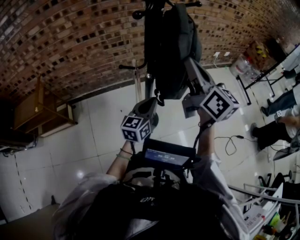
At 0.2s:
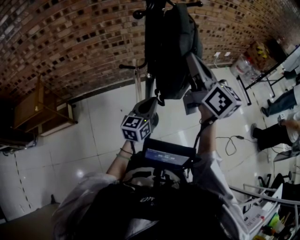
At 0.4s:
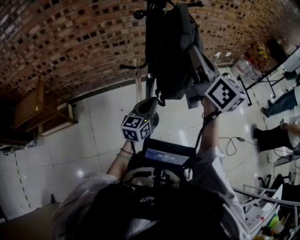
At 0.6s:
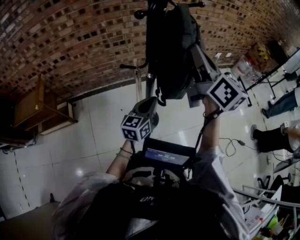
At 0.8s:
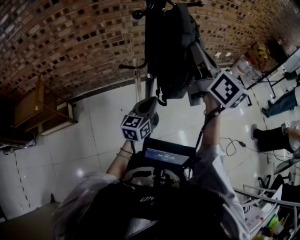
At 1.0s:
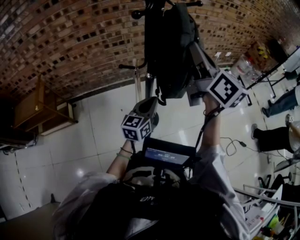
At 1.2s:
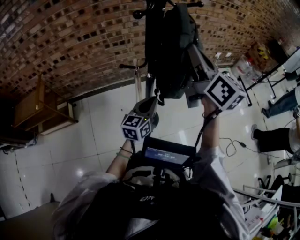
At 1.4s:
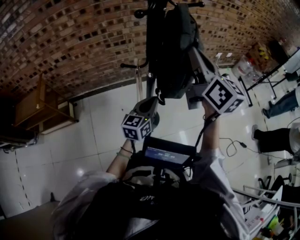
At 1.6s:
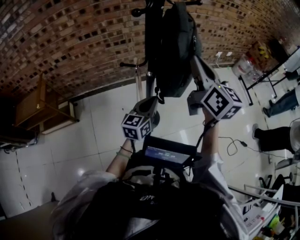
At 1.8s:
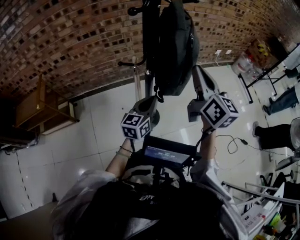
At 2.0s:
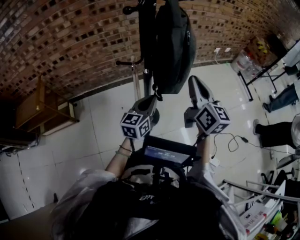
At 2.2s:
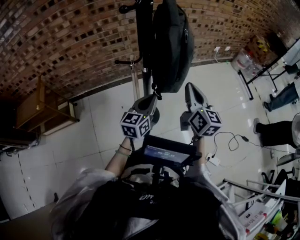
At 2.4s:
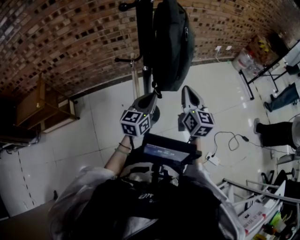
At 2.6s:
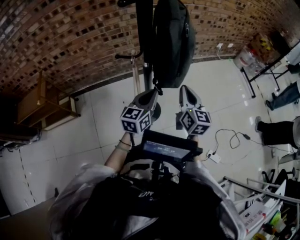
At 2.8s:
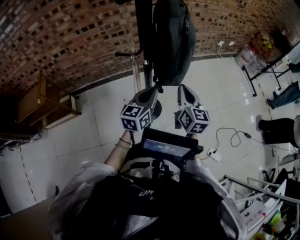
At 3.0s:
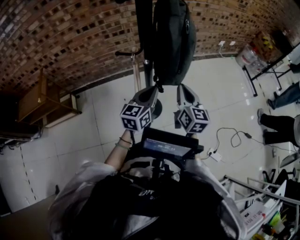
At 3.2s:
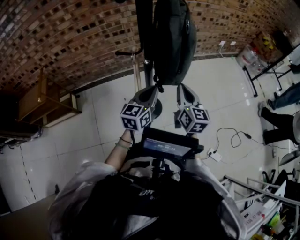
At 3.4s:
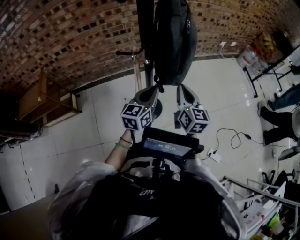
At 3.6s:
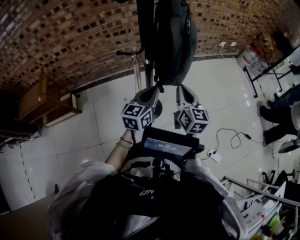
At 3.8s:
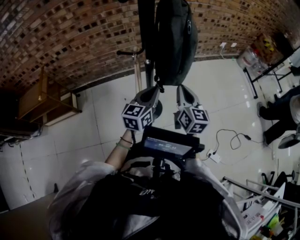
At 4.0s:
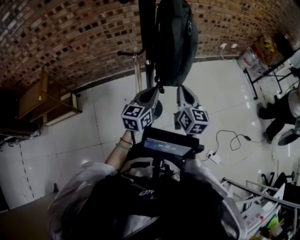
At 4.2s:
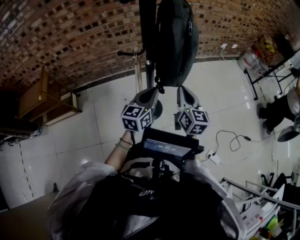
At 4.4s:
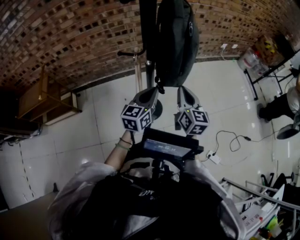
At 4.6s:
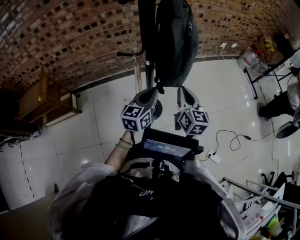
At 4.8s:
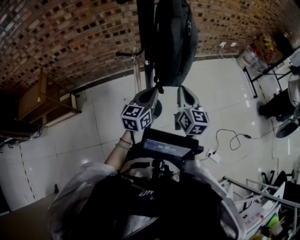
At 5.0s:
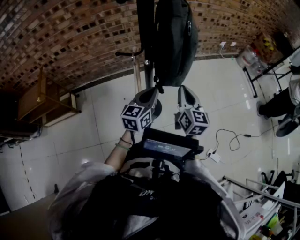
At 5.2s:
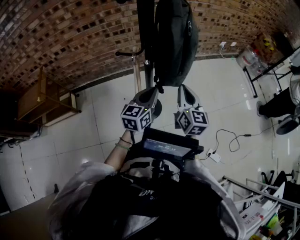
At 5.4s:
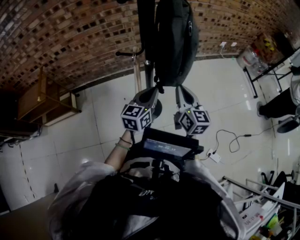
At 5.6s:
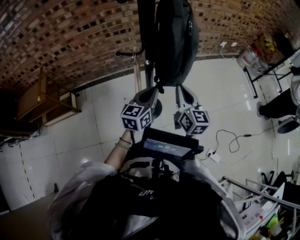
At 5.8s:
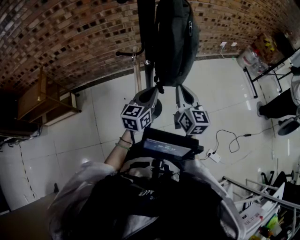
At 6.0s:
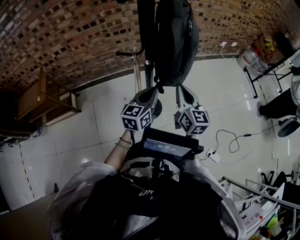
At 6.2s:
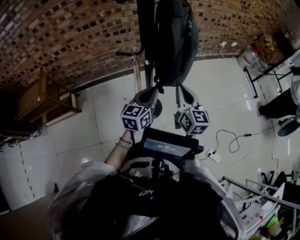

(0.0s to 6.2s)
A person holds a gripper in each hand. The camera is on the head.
0.0s - 1.6s: There are only small adjustments of the grippers.
1.6s - 3.2s: The right gripper goes some 20 cm downward.
3.2s - 4.6s: Neither gripper changes place.
4.6s - 6.2s: There are only small adjustments of the grippers.

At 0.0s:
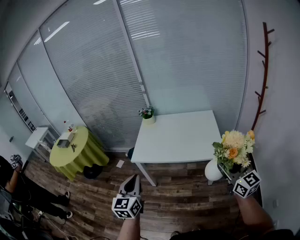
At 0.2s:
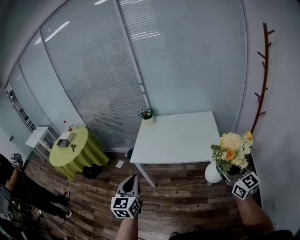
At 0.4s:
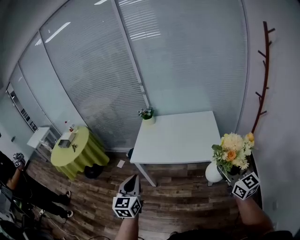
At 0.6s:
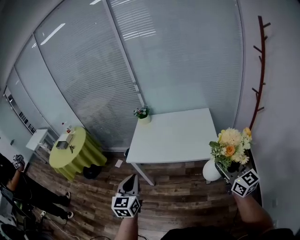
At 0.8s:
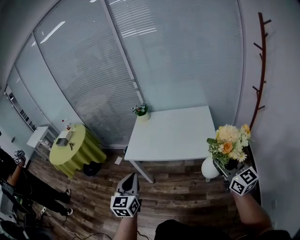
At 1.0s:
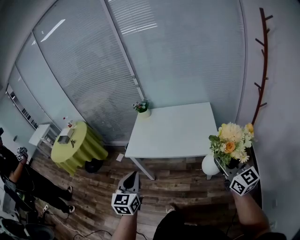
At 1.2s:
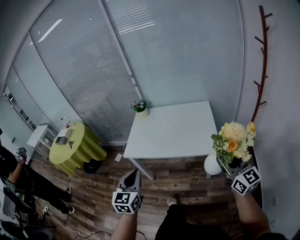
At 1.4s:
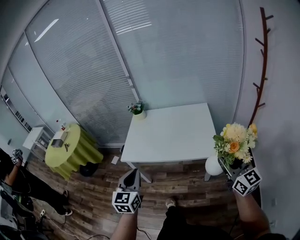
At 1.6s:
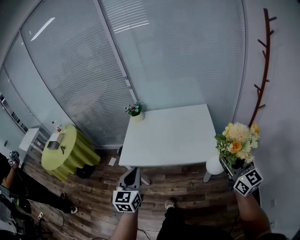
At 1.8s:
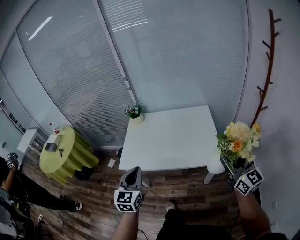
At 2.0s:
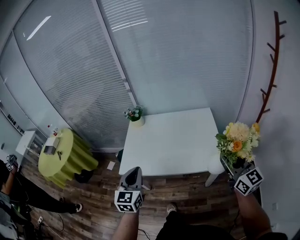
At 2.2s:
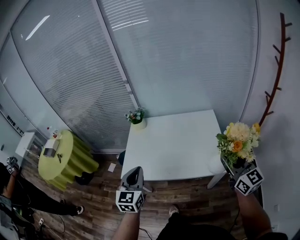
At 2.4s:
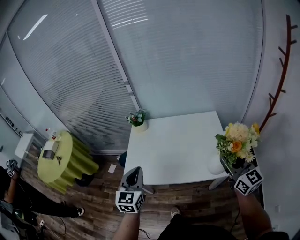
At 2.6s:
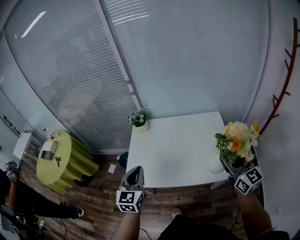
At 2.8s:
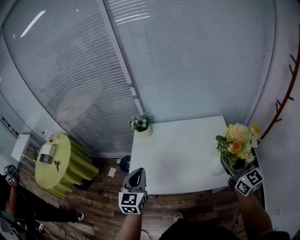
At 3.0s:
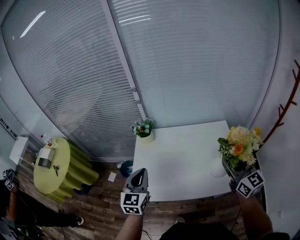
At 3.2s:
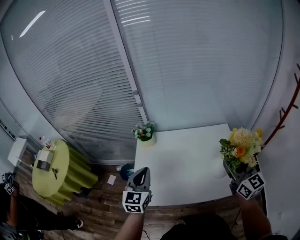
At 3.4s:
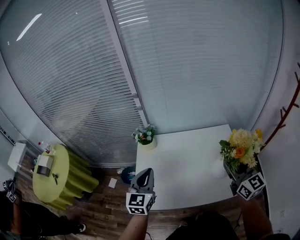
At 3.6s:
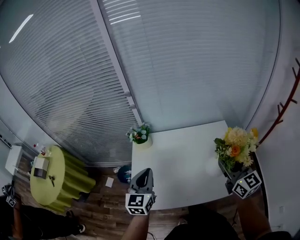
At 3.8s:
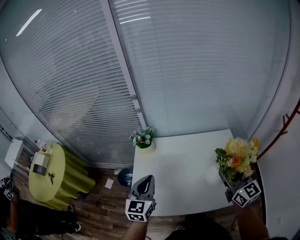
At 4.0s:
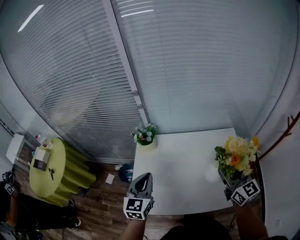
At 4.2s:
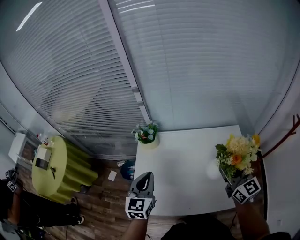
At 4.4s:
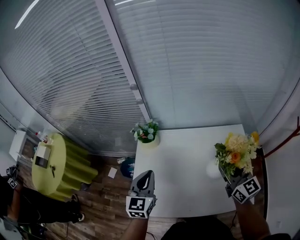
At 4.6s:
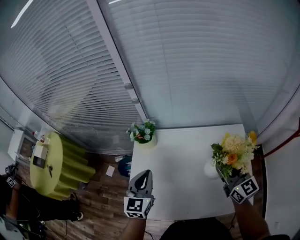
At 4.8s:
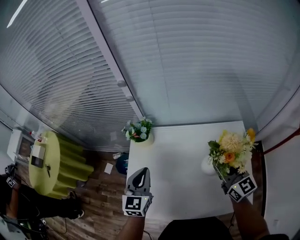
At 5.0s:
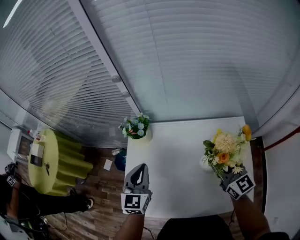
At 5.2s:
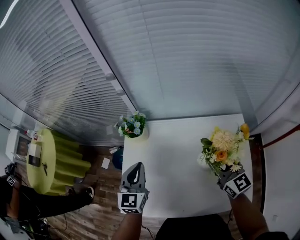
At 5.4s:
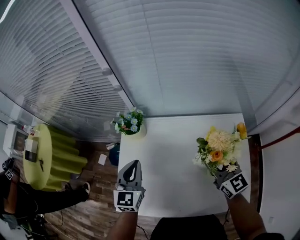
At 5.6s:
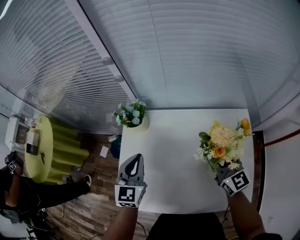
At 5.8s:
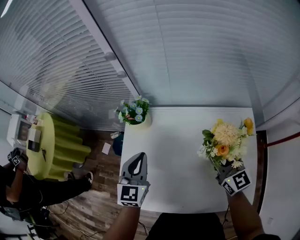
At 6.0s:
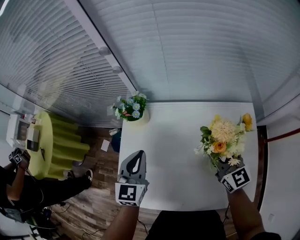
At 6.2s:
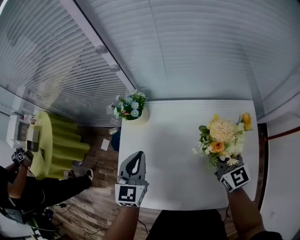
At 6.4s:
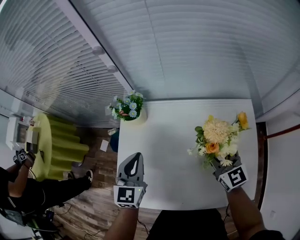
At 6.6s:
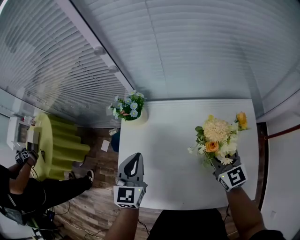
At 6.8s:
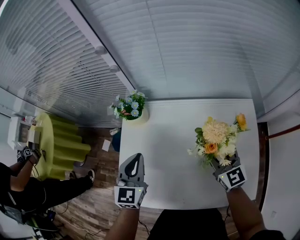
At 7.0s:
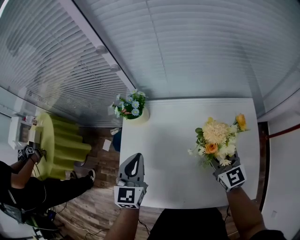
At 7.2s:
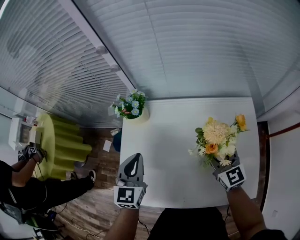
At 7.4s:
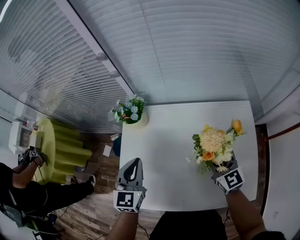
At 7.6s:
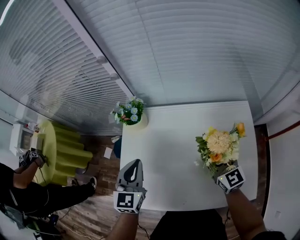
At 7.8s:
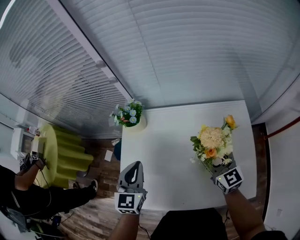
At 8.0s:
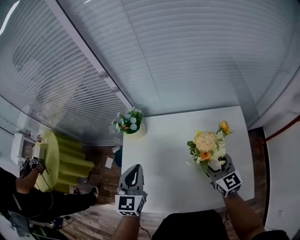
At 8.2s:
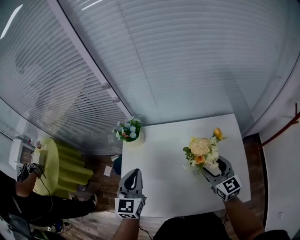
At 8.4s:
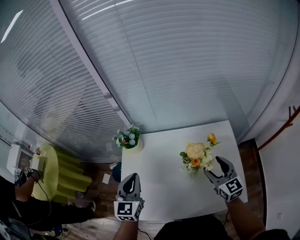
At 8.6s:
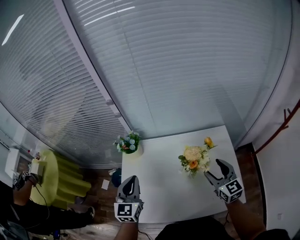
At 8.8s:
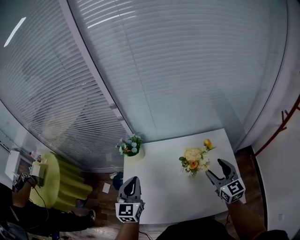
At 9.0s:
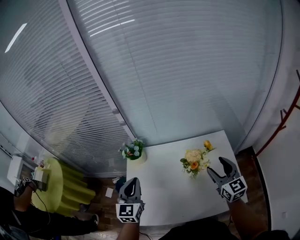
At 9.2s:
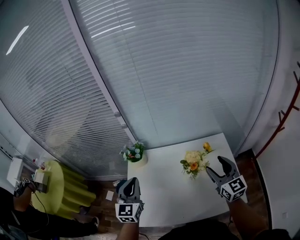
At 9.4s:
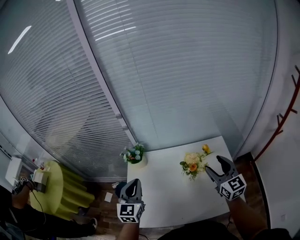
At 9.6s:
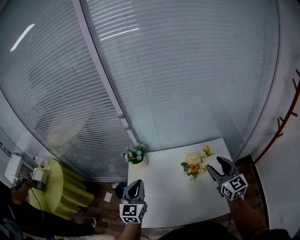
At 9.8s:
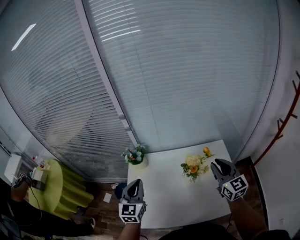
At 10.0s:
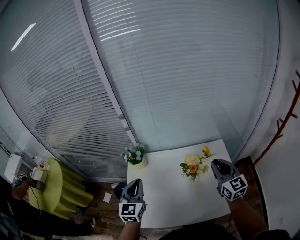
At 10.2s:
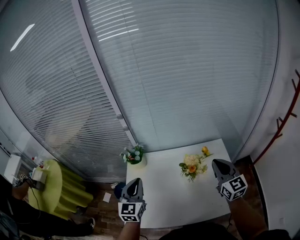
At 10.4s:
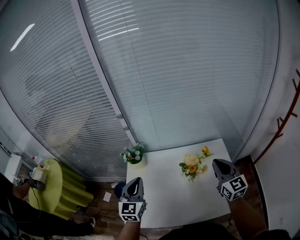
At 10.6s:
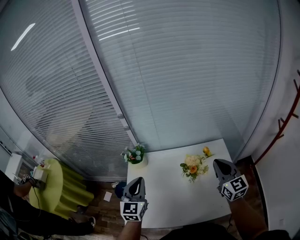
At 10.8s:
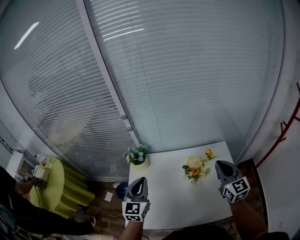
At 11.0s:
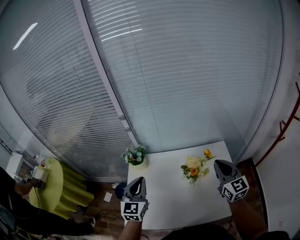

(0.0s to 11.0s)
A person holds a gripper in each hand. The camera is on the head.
0.0s - 1.6s: The left gripper goes about 15 cm forward and to the right. Meanwhile the right gripper goes roughly 10 cm to the right and forward.
1.6s - 3.2s: The left gripper is displaced forward by some 30 cm. The right gripper shifts approximately 30 cm forward and to the left.
3.2s - 4.8s: Both grippers move forward and downward, roughly 15 cm.
4.8s - 6.2s: The right gripper travels downward by approximately 10 cm.
6.2s - 7.8s: There are only small adjustments of the grippers.
7.8s - 9.4s: The right gripper is displaced upward by some 15 cm, while the left gripper goes roughly 10 cm upward.
9.4s - 11.0s: The right gripper closes its fingers.

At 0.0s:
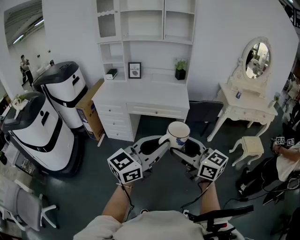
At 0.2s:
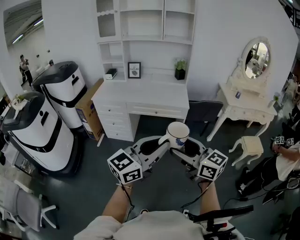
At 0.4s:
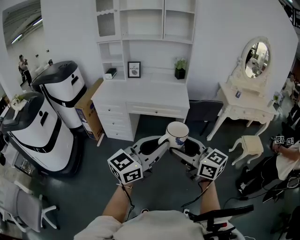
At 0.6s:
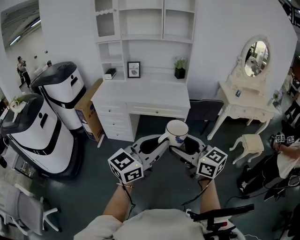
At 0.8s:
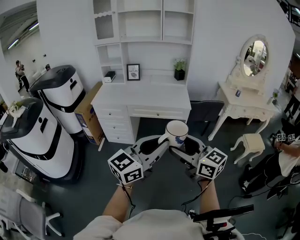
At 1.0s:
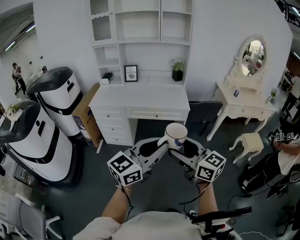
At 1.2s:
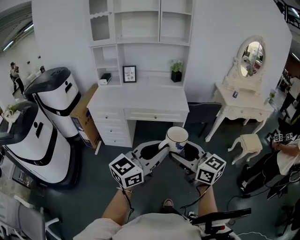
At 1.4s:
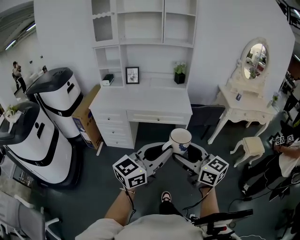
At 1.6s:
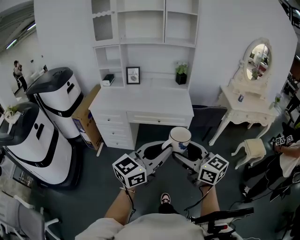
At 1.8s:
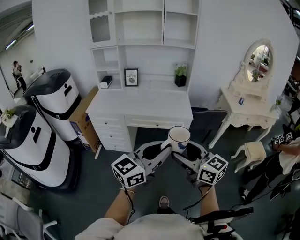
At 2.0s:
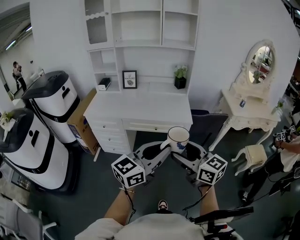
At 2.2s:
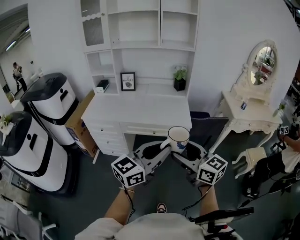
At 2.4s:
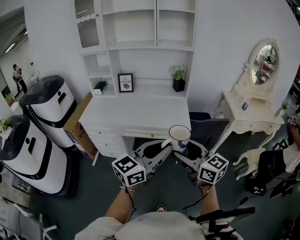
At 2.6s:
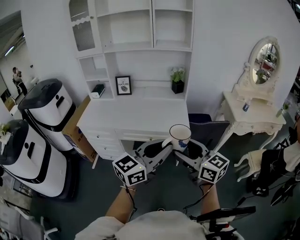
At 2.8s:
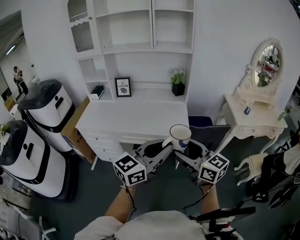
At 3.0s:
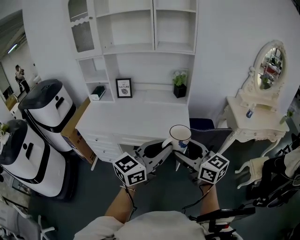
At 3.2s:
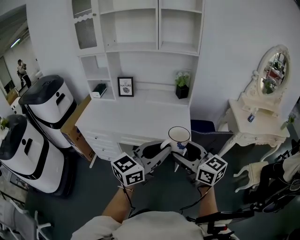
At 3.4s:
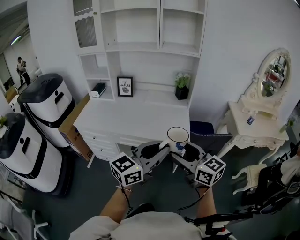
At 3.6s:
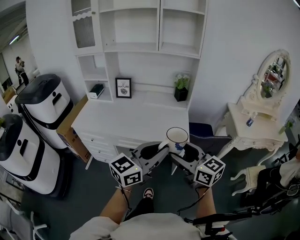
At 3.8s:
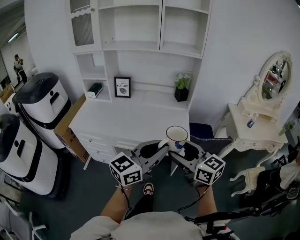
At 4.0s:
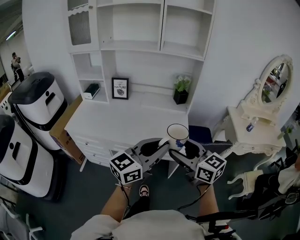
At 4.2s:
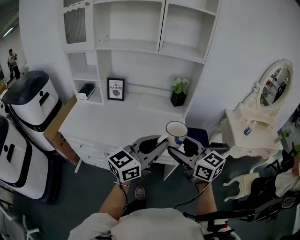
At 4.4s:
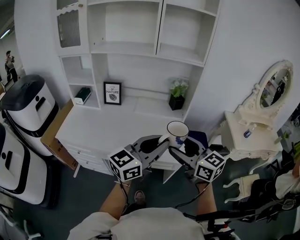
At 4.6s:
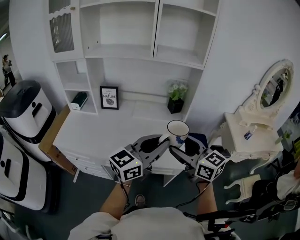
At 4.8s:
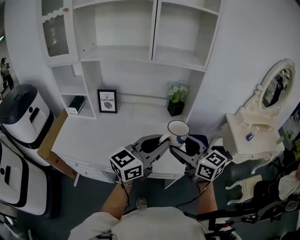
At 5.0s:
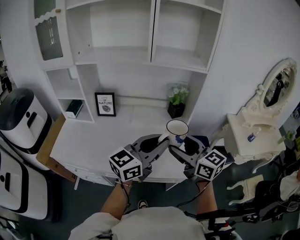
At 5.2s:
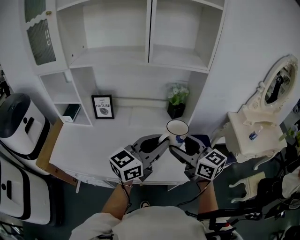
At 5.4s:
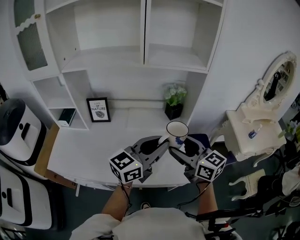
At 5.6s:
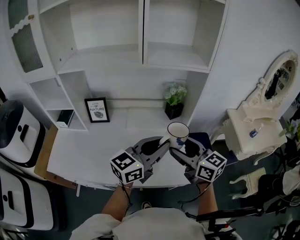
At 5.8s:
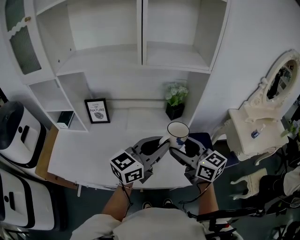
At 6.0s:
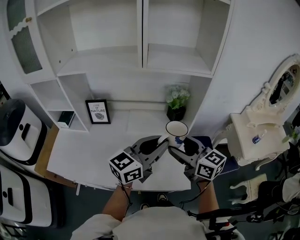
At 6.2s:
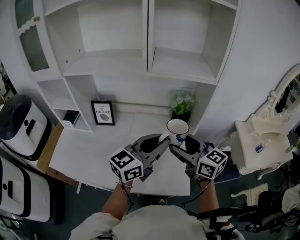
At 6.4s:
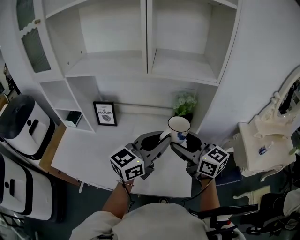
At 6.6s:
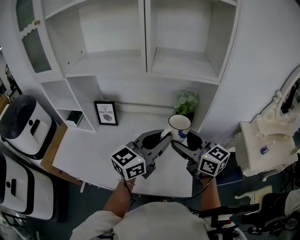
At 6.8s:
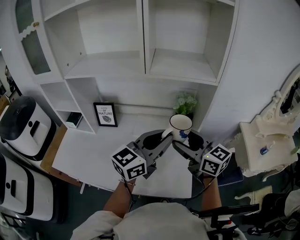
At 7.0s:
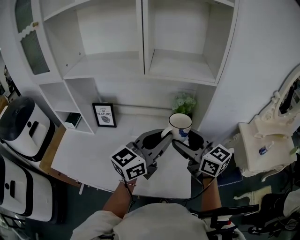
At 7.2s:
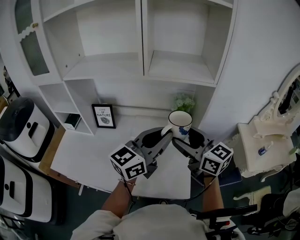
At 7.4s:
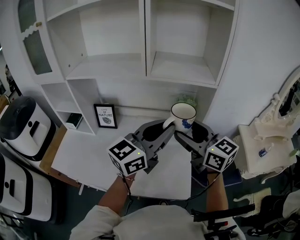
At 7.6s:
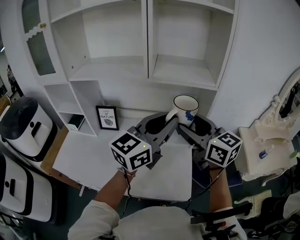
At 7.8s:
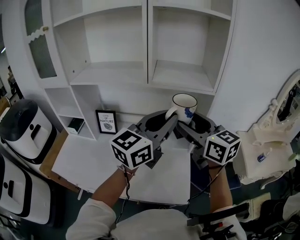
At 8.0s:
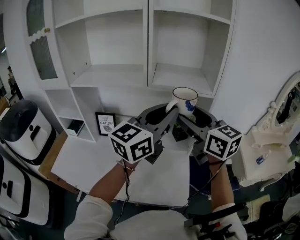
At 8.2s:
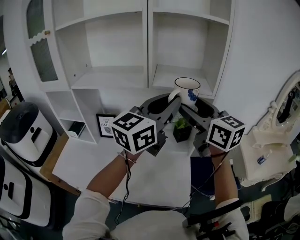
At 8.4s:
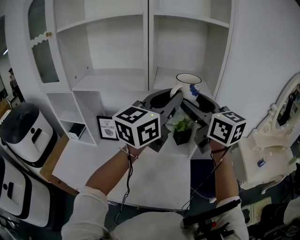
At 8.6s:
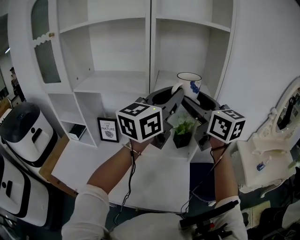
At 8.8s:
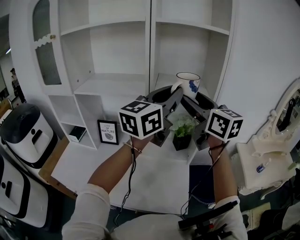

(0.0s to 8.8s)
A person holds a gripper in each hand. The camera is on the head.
0.0s - 1.4s: The grippers both shift forward and to the left by roughly 10 cm.
1.4s - 3.0s: The two grippers go some 30 cm forward.
3.0s - 4.4s: The two grippers go about 20 cm forward.
4.4s - 5.8s: Both grippers move forward, about 20 cm.
5.8s - 7.4s: Both grippers travel together upward and forward, roughly 10 cm.
7.4s - 8.8s: The grippers both shift upward and forward by roughly 15 cm.
